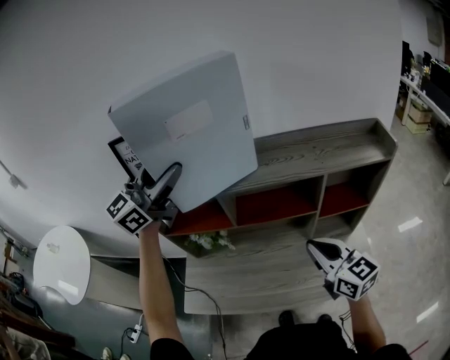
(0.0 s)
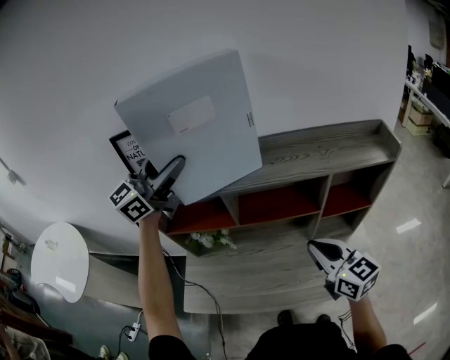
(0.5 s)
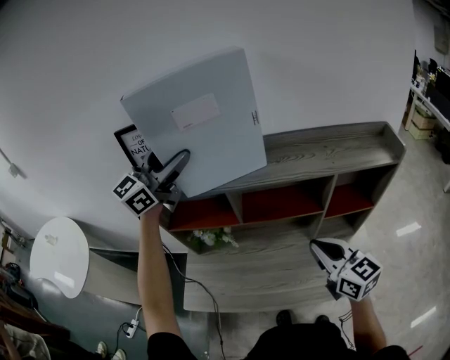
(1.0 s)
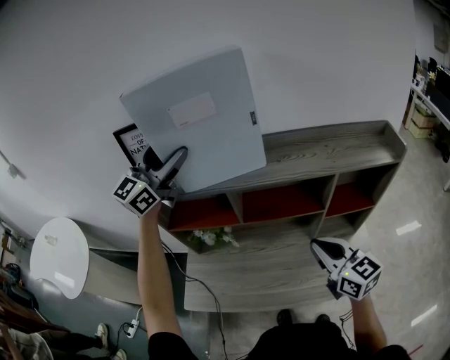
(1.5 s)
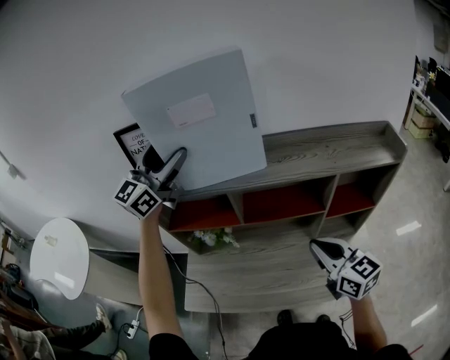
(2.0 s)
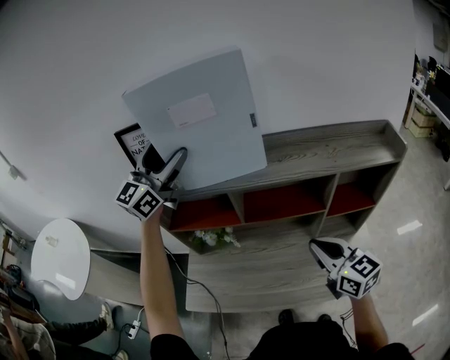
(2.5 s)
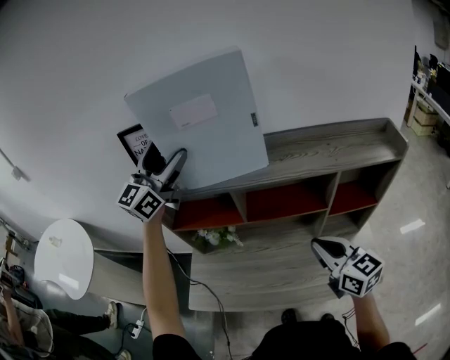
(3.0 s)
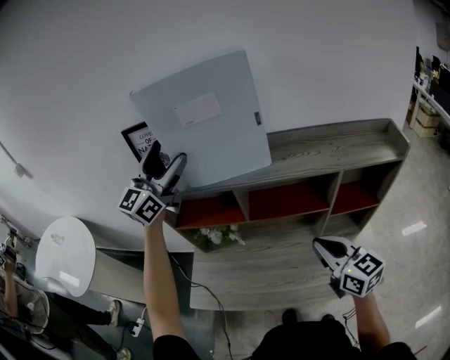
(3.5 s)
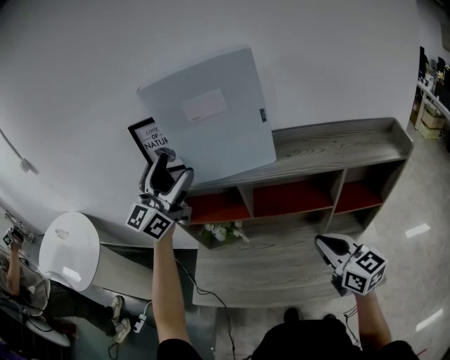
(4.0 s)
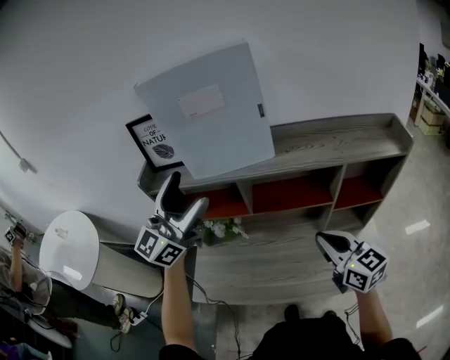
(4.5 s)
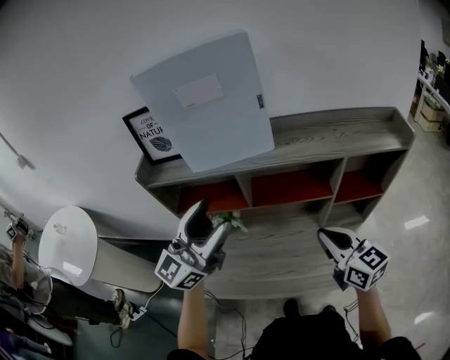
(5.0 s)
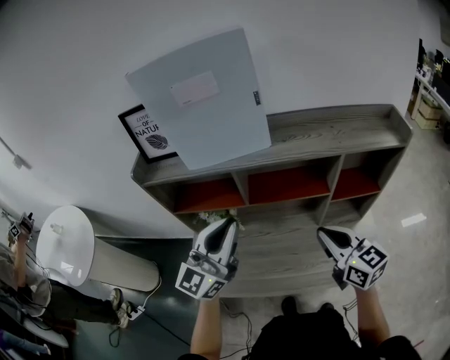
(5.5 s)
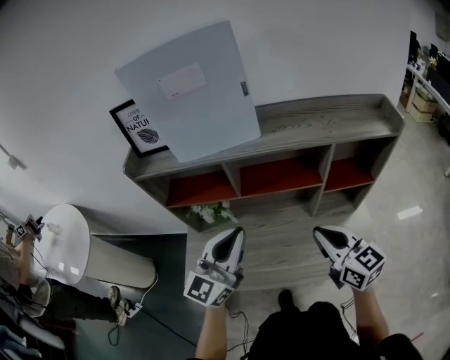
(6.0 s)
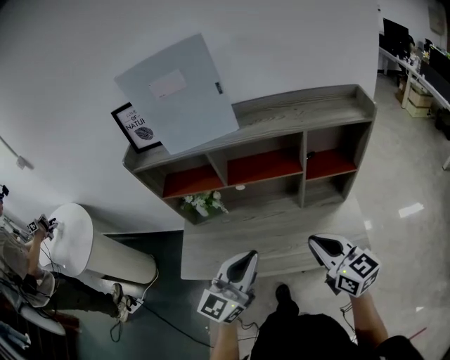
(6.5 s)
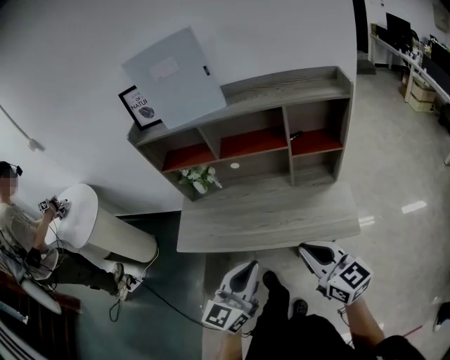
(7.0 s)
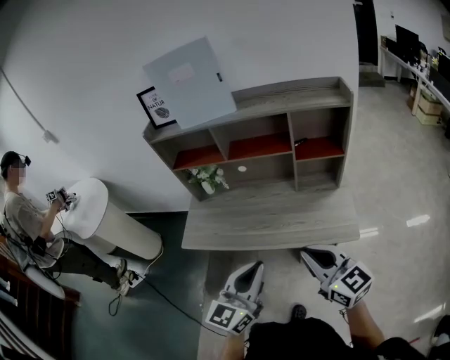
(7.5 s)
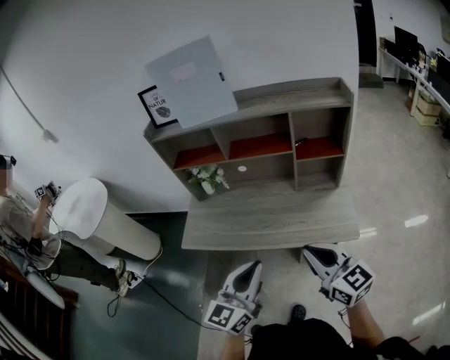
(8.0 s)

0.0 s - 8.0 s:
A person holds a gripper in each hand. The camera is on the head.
0.0 s - 2.0 s: The left gripper goes roughly 5 cm forward.
2.0 s - 4.0 s: The left gripper goes approximately 5 cm backward.
4.0 s - 6.0 s: The left gripper heads downward, backward and to the right, covering roughly 30 cm, and closes its fingers.
6.0 s - 8.0 s: Both grippers travel together backward, some 30 cm.

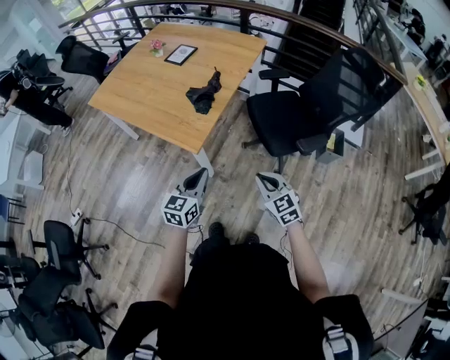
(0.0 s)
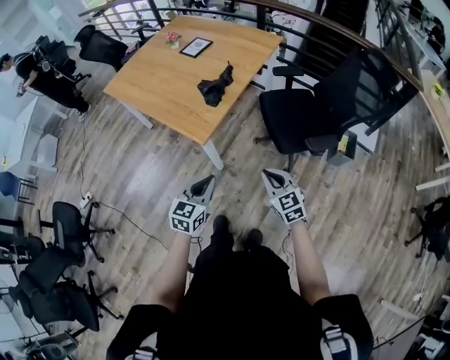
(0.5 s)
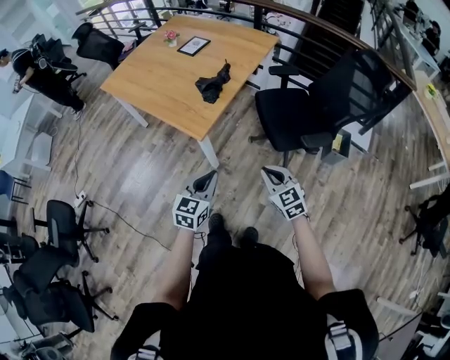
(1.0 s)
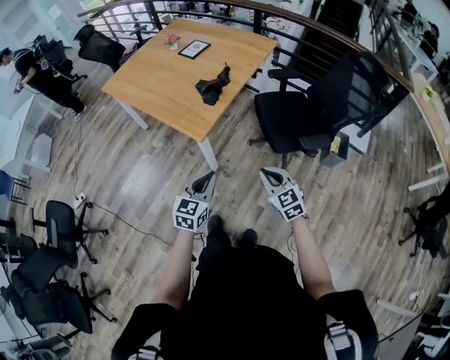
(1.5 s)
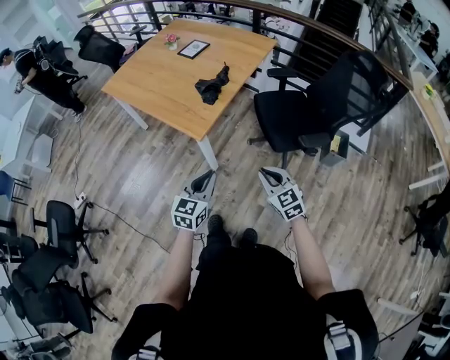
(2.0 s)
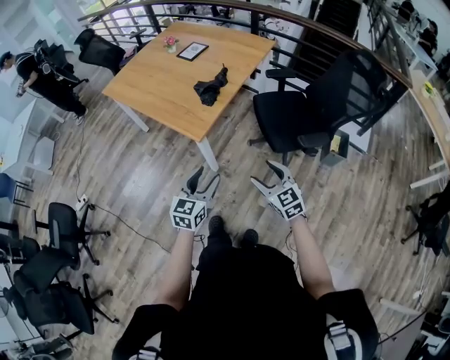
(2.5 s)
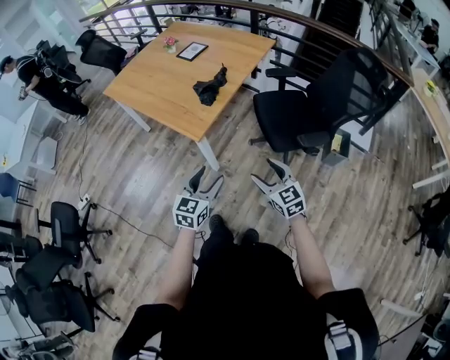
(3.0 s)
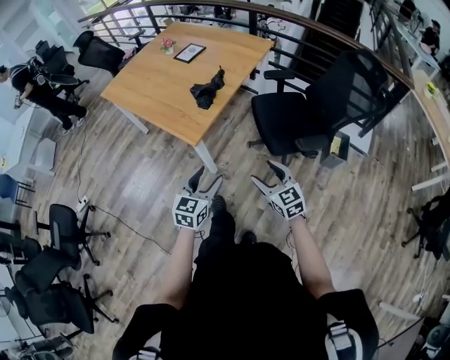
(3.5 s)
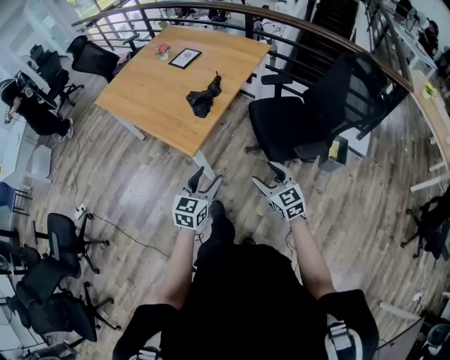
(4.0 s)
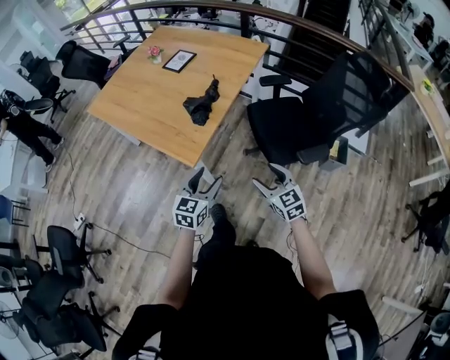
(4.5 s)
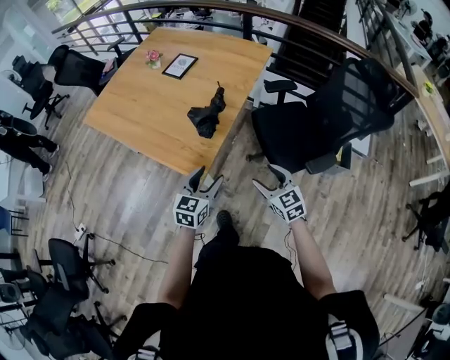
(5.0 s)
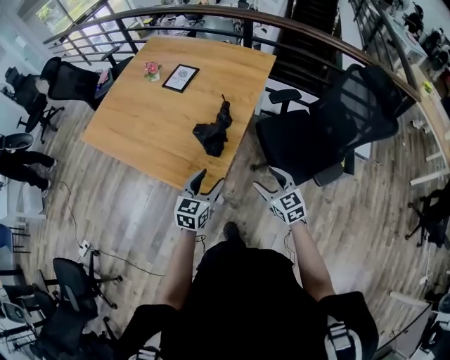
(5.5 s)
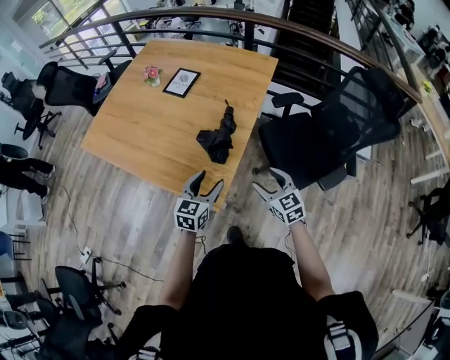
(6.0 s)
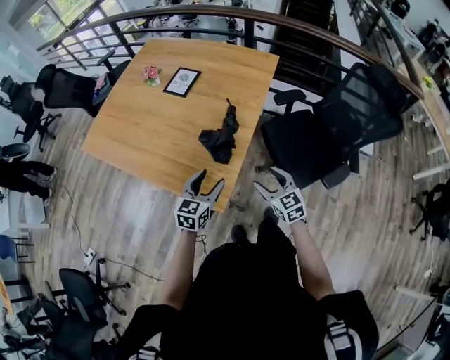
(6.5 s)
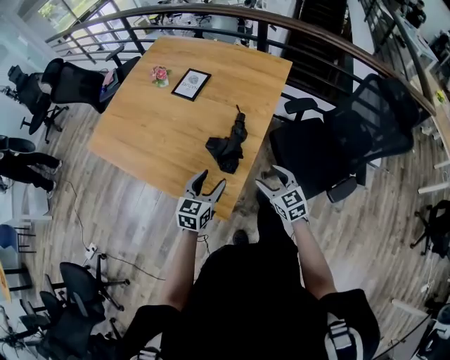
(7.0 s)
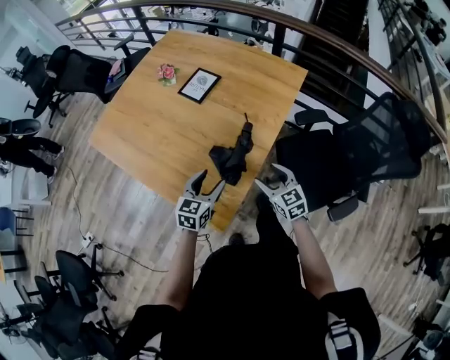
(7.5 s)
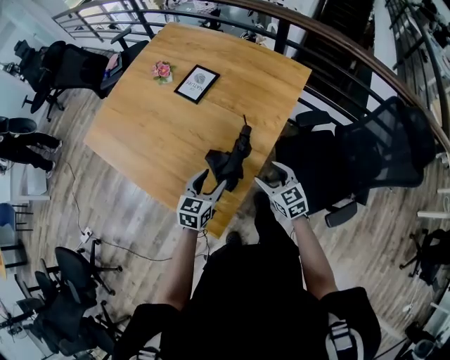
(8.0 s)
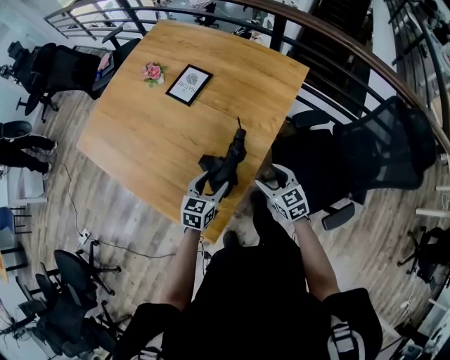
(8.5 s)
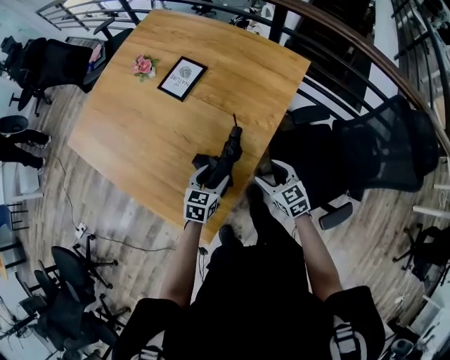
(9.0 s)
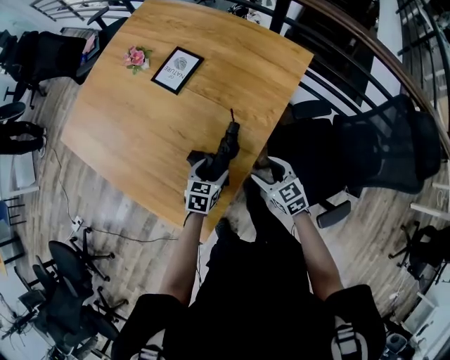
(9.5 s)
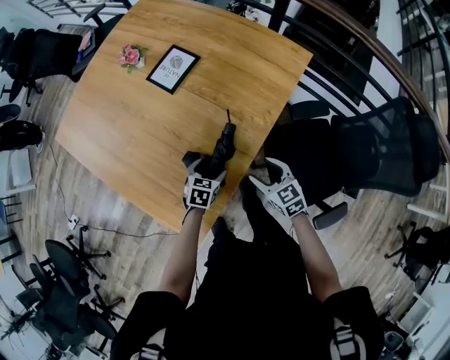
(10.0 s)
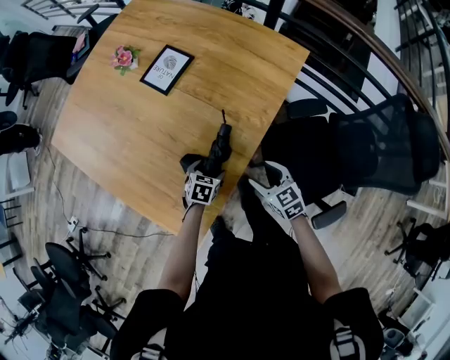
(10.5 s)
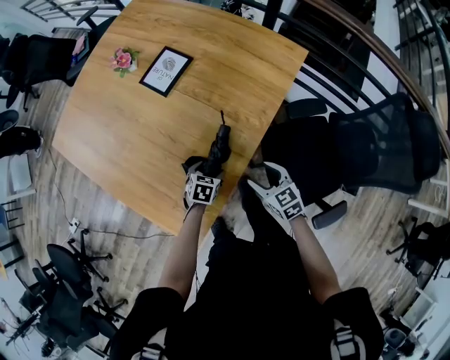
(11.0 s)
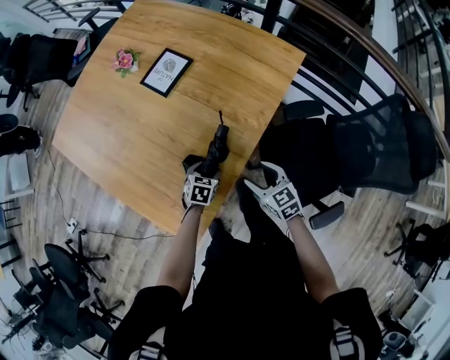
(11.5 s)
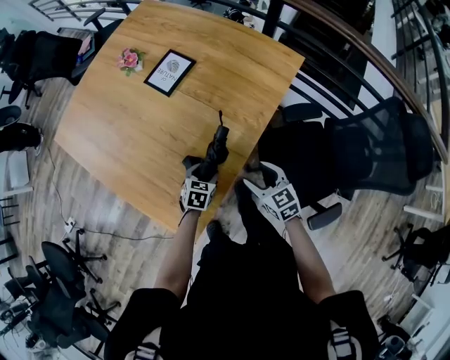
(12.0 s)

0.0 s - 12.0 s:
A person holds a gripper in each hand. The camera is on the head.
0.0 s - 2.0 s: The left gripper moves backward, roughly 10 cm. The right gripper shifts by roughly 5 cm.
2.0 s - 4.0 s: Both grippers travel together forward, approximately 5 cm. The left gripper opens its fingers. The right gripper opens up.
4.0 s - 6.0 s: The grippers both shift forward and to the left by roughly 30 cm.
6.0 s - 8.0 s: The grippers both shift forward by approximately 15 cm.
8.0 s - 10.0 s: The left gripper shifts roughly 20 cm downward, forward and to the right, and swivels about 20 degrees. Meanwhile the right gripper is displaced downward by about 5 cm.
10.0 s - 12.0 s: The grippers move only a little.

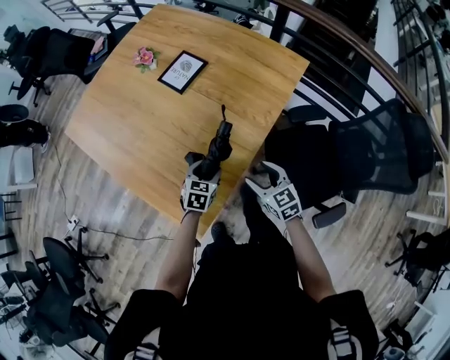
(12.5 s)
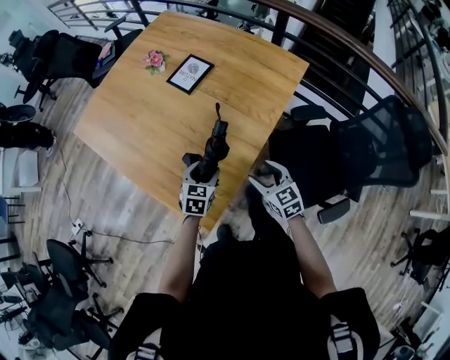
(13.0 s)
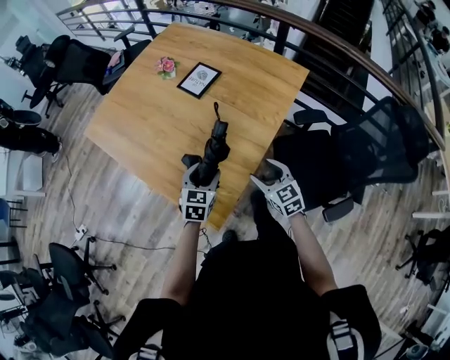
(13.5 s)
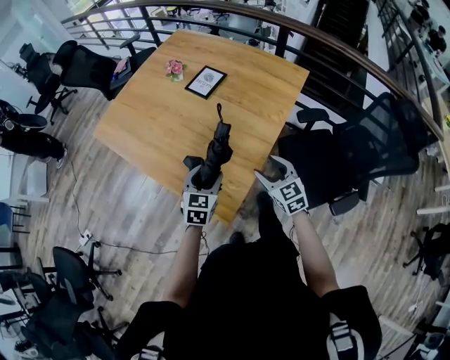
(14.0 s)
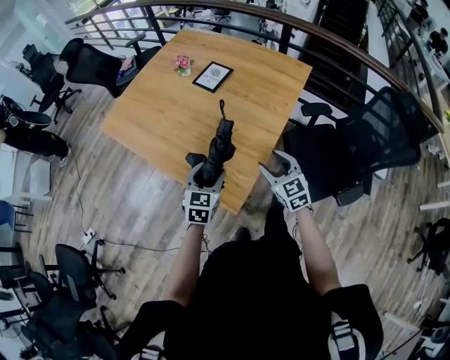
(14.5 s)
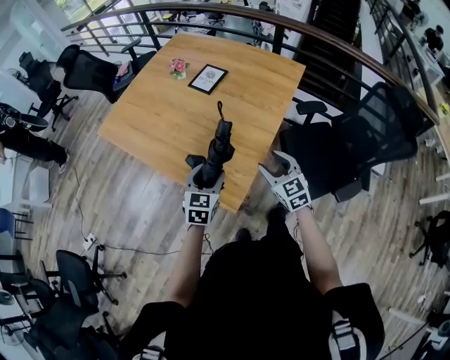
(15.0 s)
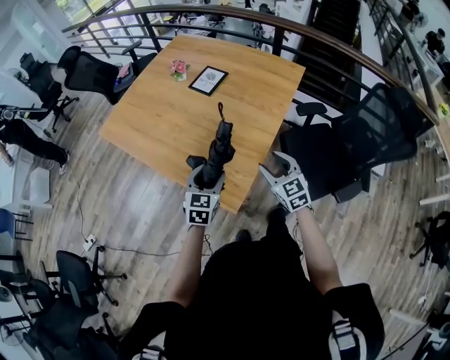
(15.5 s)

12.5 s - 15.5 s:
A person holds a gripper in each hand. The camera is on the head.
12.5 s - 14.0 s: The left gripper moves upward, to the left and backward, approximately 20 cm, while the right gripper shifts some 10 cm to the left, upward and backward.
14.0 s - 15.5 s: The right gripper moves some 5 cm; the left gripper moves backward, approximately 5 cm.

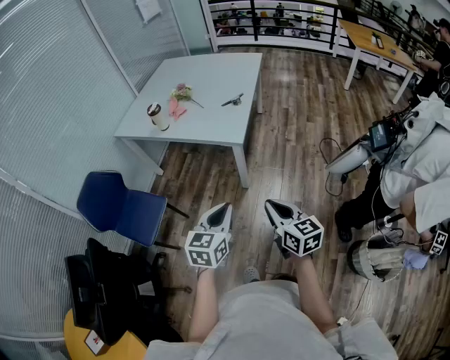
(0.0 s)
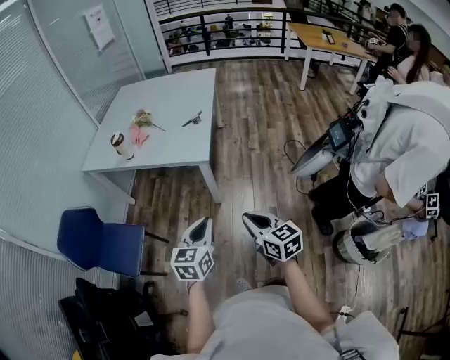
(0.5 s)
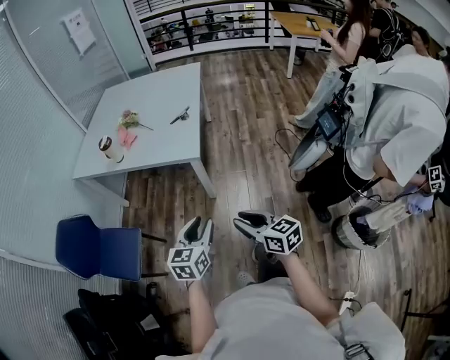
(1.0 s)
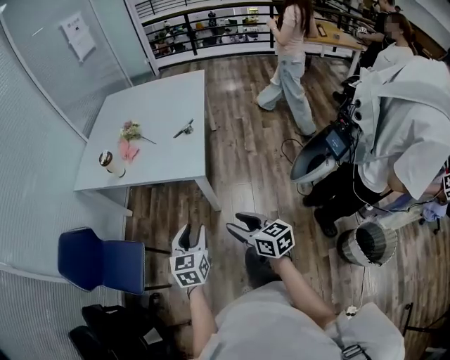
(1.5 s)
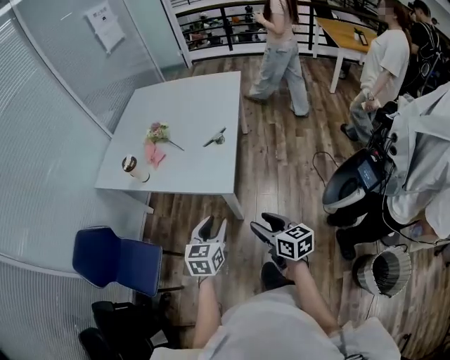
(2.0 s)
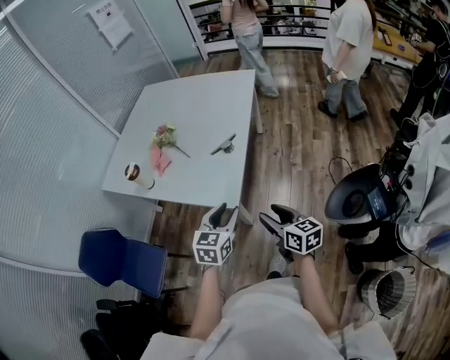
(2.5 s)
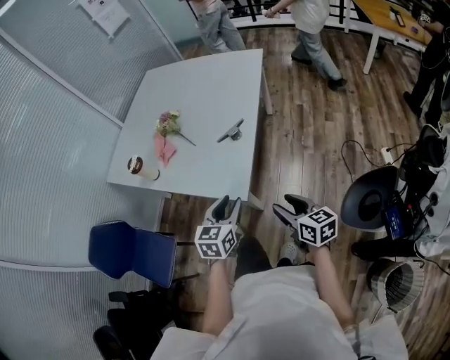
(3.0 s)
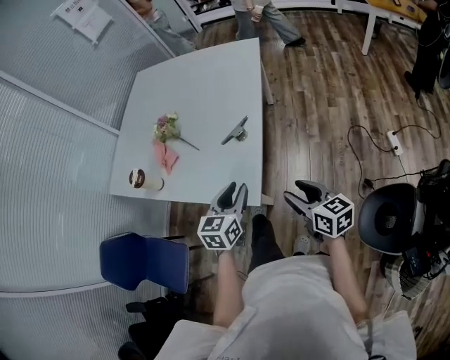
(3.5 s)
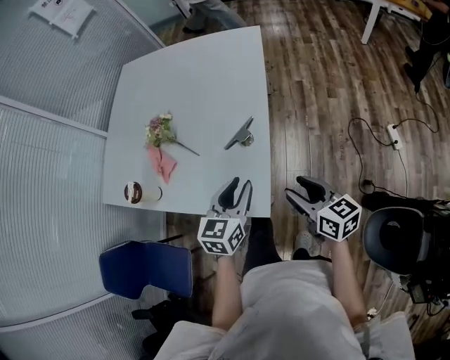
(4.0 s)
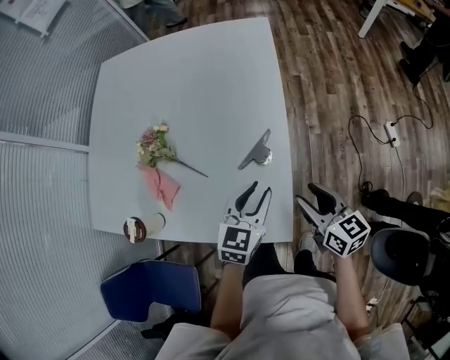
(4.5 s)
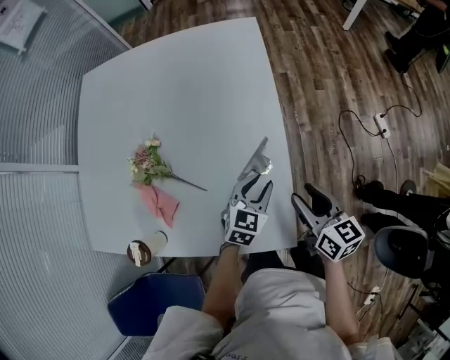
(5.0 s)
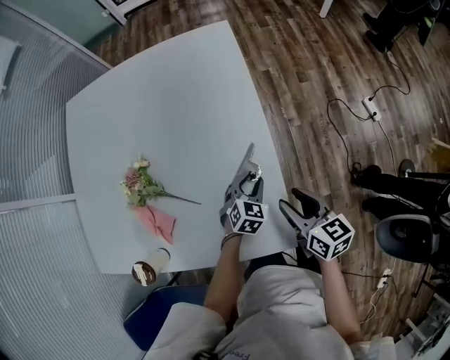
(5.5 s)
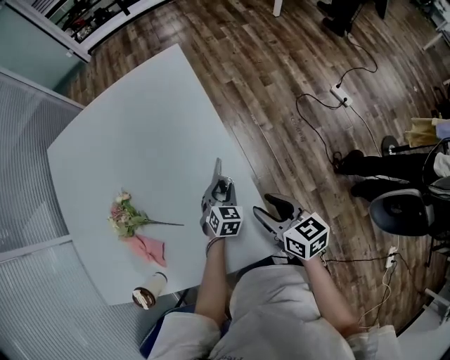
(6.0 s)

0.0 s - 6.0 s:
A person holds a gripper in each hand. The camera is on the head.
0.0 s - 2.0 s: Both grippers move forward, some 25 cm. The right gripper opens up. The left gripper opens its fingers.
2.0 s - 4.0 s: The two grippers go some 30 cm forward.
4.0 s - 6.0 s: The left gripper goes about 30 cm downward and forward, and changes its angle by roughly 40 degrees. The right gripper moves forward, to the left and downward, approximately 15 cm, and turns by some 30 degrees.
